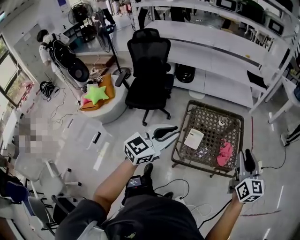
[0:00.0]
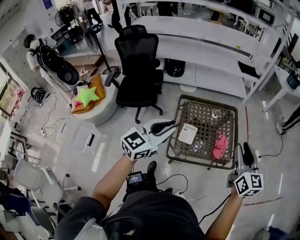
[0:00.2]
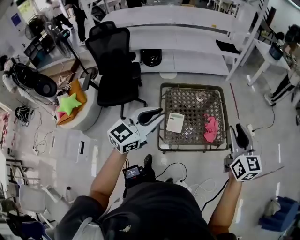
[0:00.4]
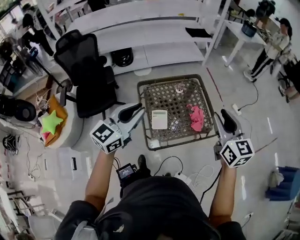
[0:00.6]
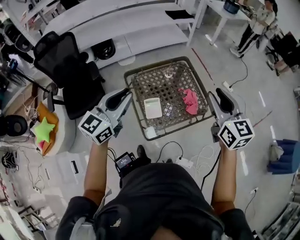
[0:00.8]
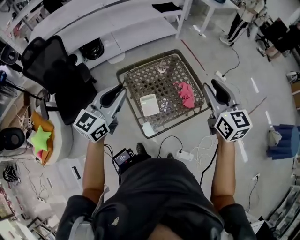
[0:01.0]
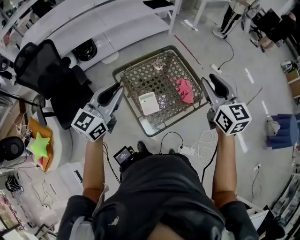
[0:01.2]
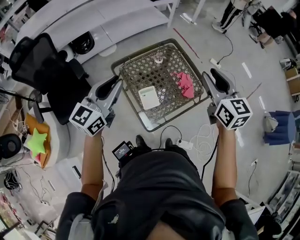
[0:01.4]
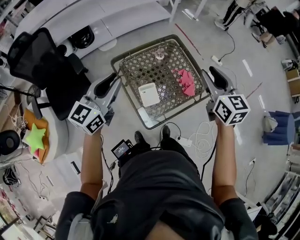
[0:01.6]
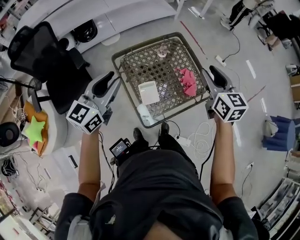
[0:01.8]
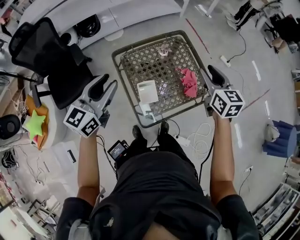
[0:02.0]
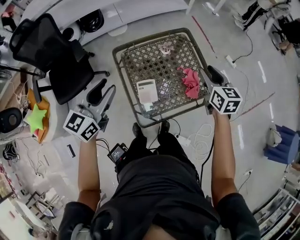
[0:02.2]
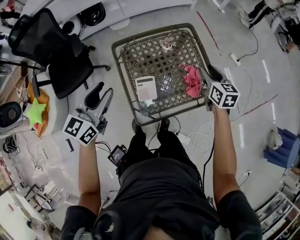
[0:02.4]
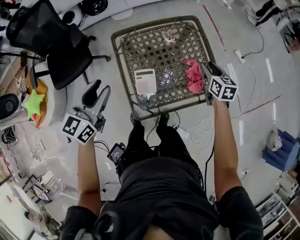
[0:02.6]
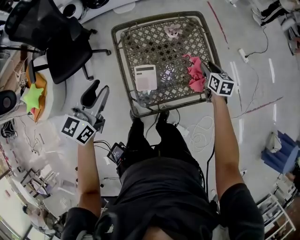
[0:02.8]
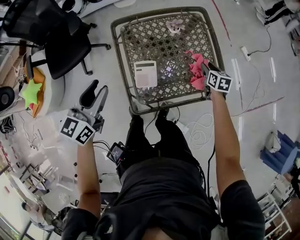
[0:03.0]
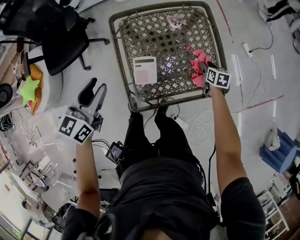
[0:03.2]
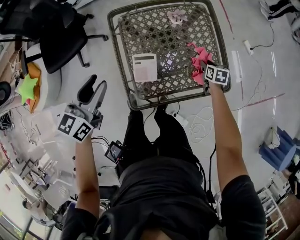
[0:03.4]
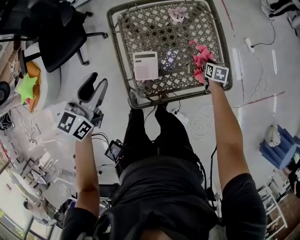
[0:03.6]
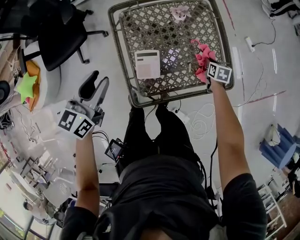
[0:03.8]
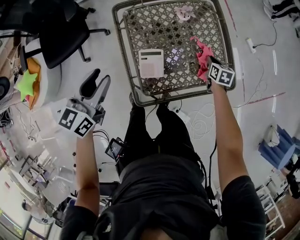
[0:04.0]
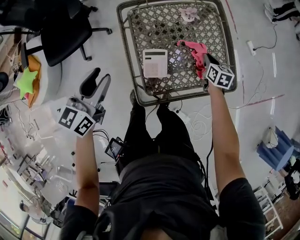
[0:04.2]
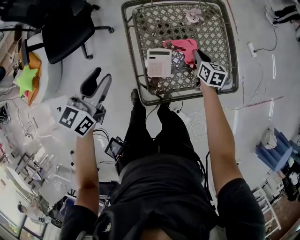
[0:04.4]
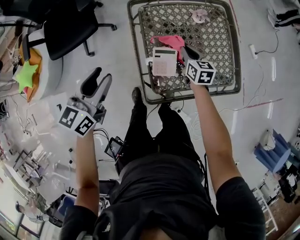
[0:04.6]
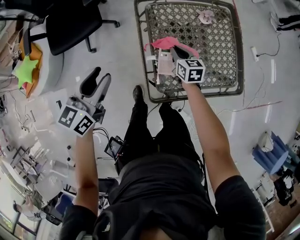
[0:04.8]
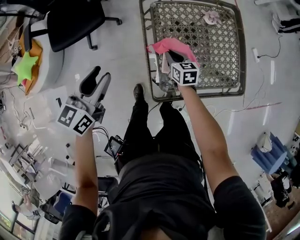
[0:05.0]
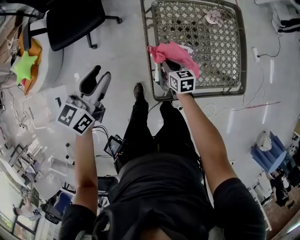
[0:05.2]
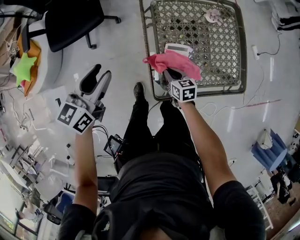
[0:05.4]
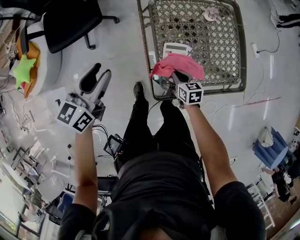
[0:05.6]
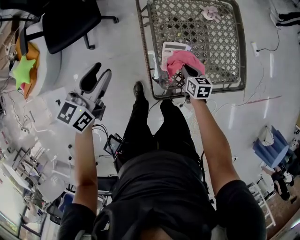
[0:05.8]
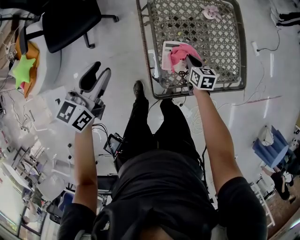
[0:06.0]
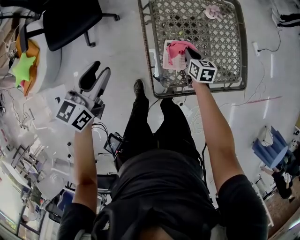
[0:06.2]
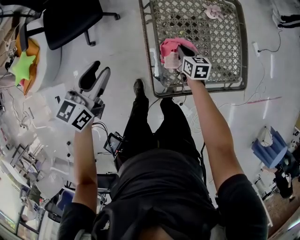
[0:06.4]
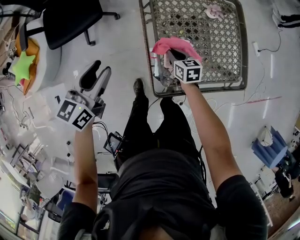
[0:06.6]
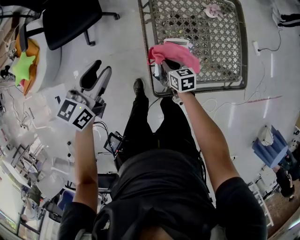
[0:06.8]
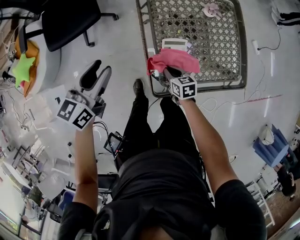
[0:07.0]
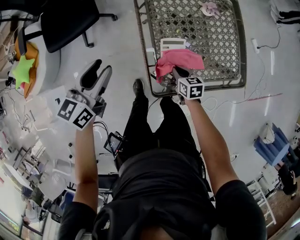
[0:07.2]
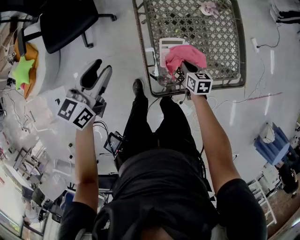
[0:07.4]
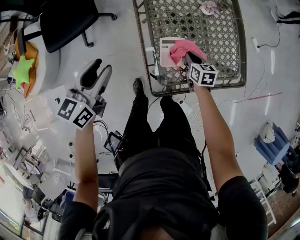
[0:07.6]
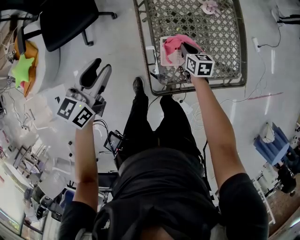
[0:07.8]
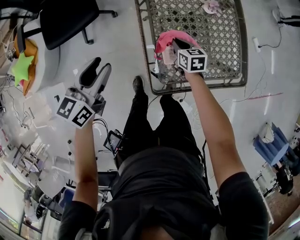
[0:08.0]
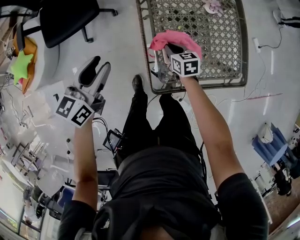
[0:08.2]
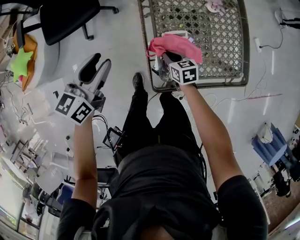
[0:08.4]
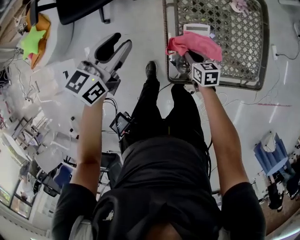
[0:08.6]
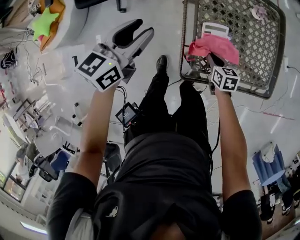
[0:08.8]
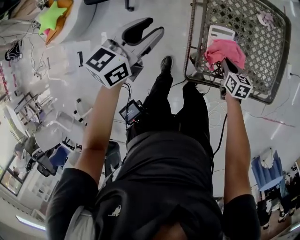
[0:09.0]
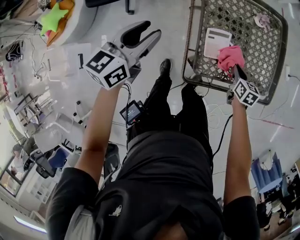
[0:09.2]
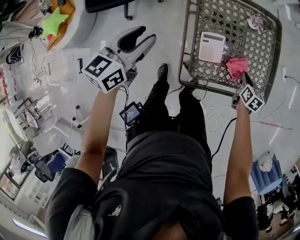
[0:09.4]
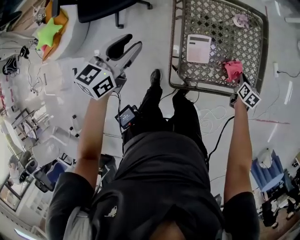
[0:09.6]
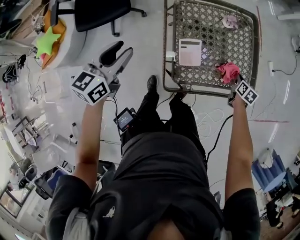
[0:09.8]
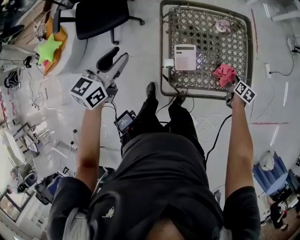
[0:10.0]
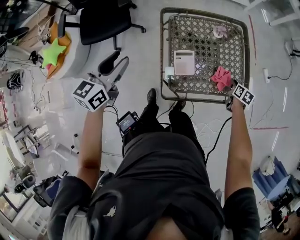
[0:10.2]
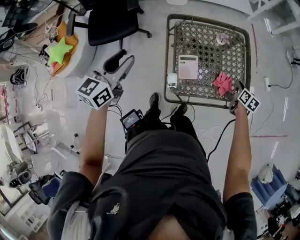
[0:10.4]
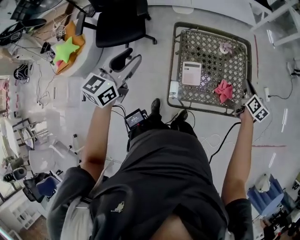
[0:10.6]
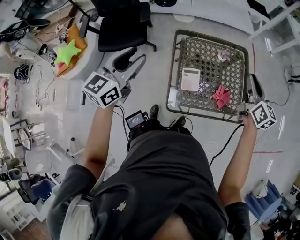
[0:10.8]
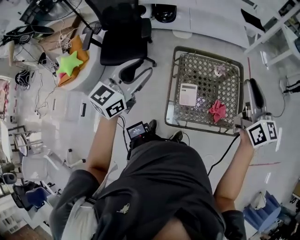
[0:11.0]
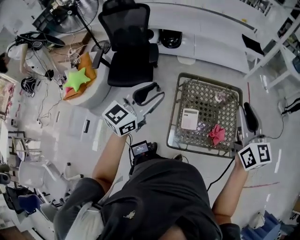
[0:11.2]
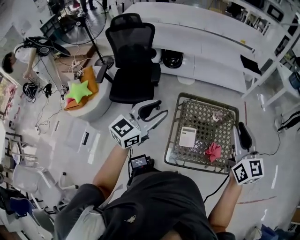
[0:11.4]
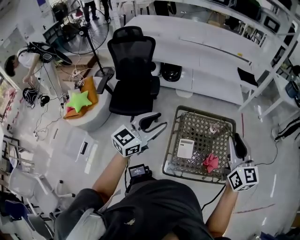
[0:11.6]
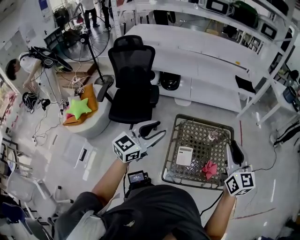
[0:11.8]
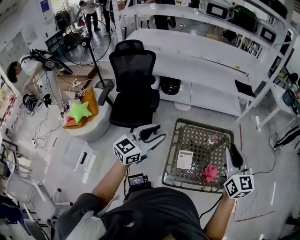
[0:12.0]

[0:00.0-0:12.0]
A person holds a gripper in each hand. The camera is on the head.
0:00.0 to 0:01.6: The right gripper heads forward and to the left, covering about 10 cm, and rotates approximately 30 degrees; the left gripper travels forward and to the left by some 25 cm, and turns by some 20 degrees.
0:01.6 to 0:03.0: The left gripper heads downward, covering about 15 cm, rotates some 30 degrees, and opens, while the right gripper is displaced downward by about 40 cm, and points its fingers roughly 30 degrees further downward.
0:03.0 to 0:04.4: The right gripper travels to the left by roughly 15 cm, and closes up; the left gripper goes approximately 5 cm to the left.
0:04.4 to 0:06.0: The left gripper travels to the left by roughly 10 cm. Meanwhile the right gripper travels to the left, downward and backward by about 15 cm.
0:06.0 to 0:07.6: The right gripper travels to the left and back again, roughly 10 cm each way.
0:07.6 to 0:09.0: The right gripper heads backward, covering approximately 5 cm, and goes to the left and returns, approximately 10 cm each way.
0:09.0 to 0:10.4: The left gripper goes about 15 cm upward. The right gripper goes about 25 cm to the right and upward, and swivels roughly 20 degrees.
0:10.4 to 0:12.0: The right gripper moves upward and to the left, approximately 50 cm, and angles its fingers upward, by approximately 40 degrees. The left gripper is displaced upward by some 15 cm, and swivels approximately 20 degrees.

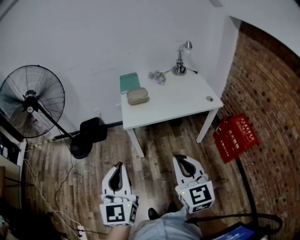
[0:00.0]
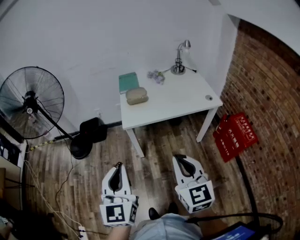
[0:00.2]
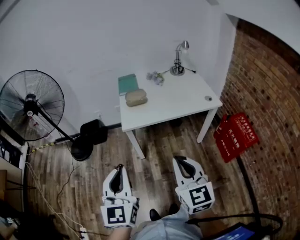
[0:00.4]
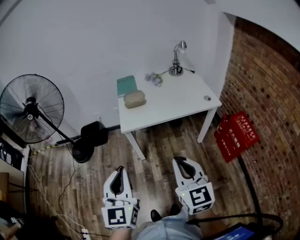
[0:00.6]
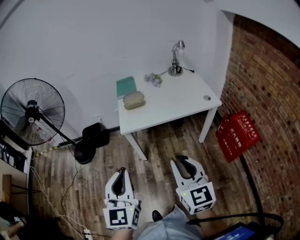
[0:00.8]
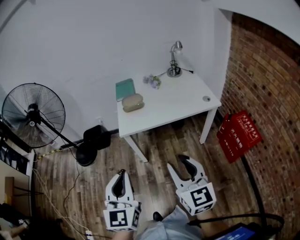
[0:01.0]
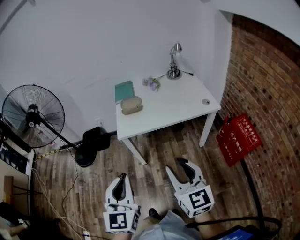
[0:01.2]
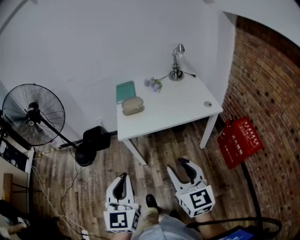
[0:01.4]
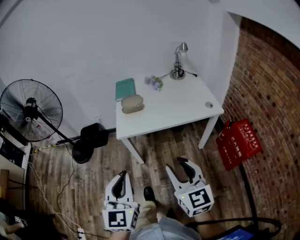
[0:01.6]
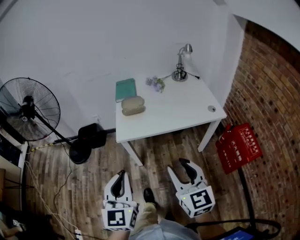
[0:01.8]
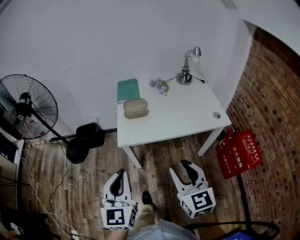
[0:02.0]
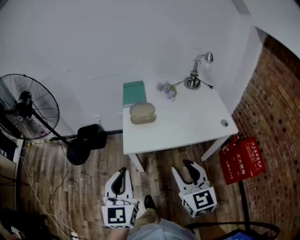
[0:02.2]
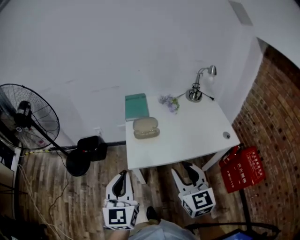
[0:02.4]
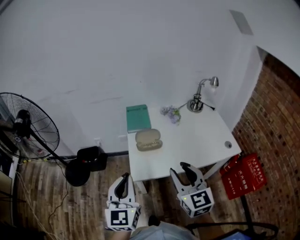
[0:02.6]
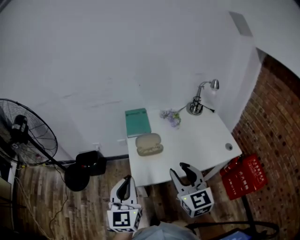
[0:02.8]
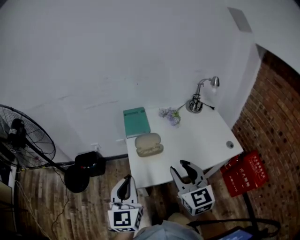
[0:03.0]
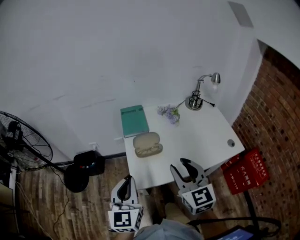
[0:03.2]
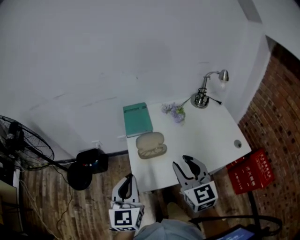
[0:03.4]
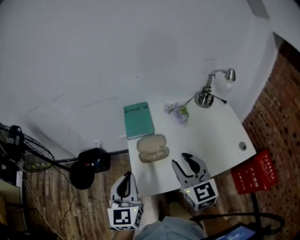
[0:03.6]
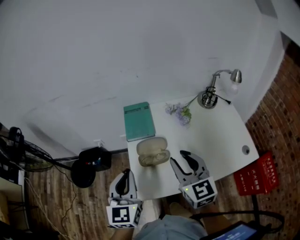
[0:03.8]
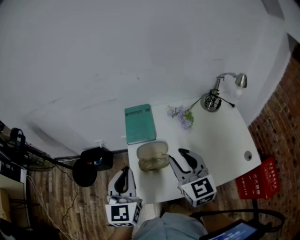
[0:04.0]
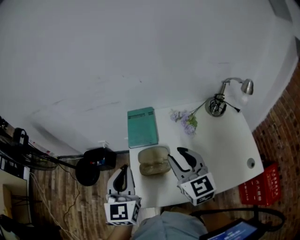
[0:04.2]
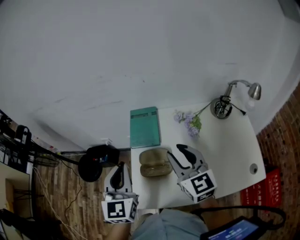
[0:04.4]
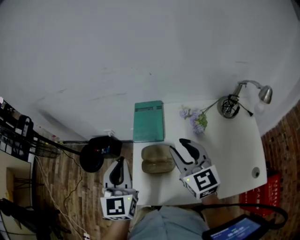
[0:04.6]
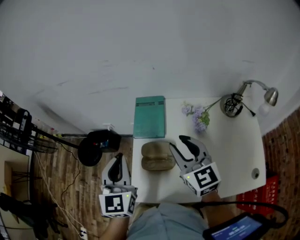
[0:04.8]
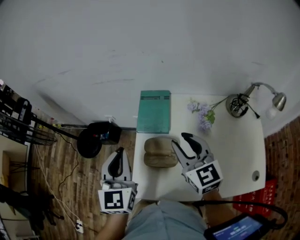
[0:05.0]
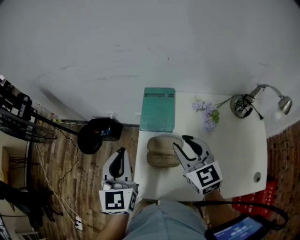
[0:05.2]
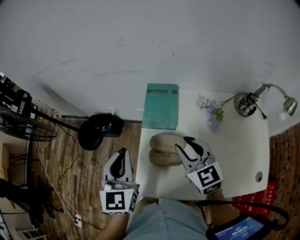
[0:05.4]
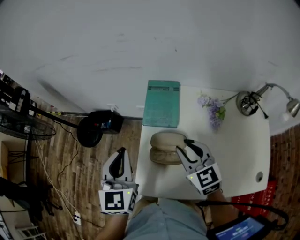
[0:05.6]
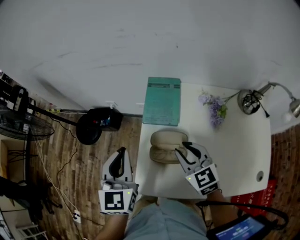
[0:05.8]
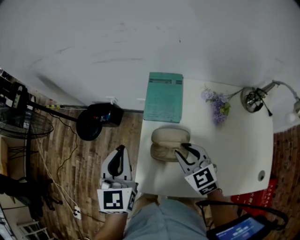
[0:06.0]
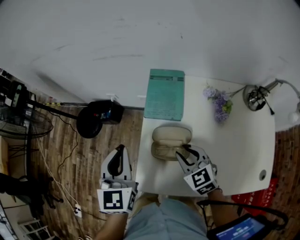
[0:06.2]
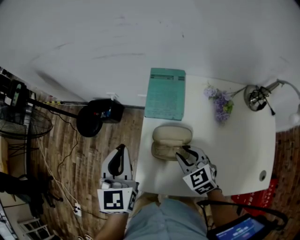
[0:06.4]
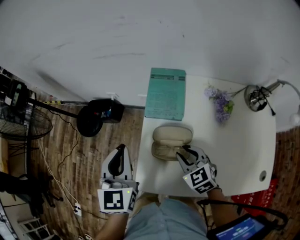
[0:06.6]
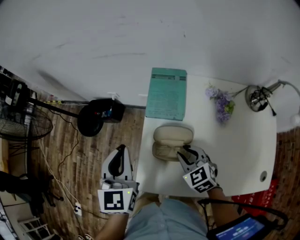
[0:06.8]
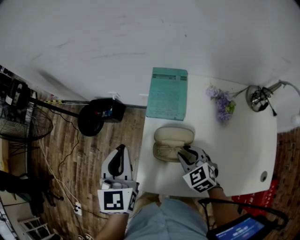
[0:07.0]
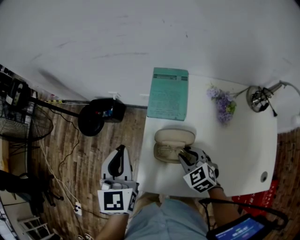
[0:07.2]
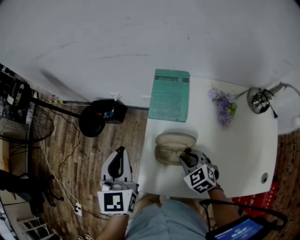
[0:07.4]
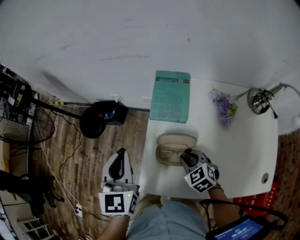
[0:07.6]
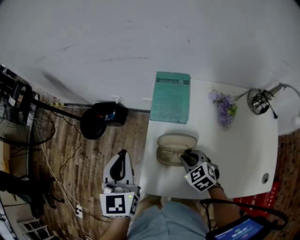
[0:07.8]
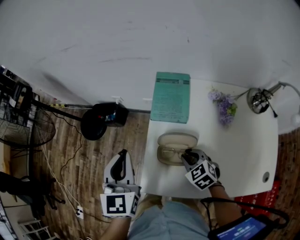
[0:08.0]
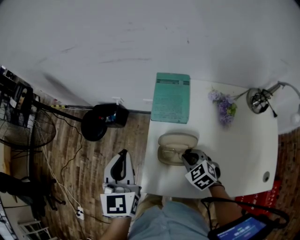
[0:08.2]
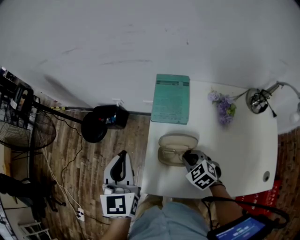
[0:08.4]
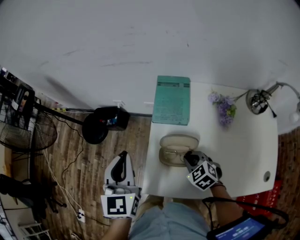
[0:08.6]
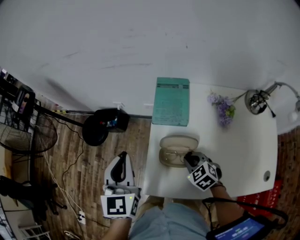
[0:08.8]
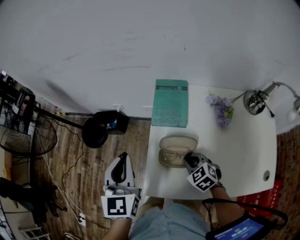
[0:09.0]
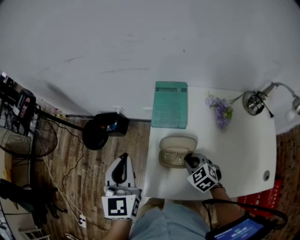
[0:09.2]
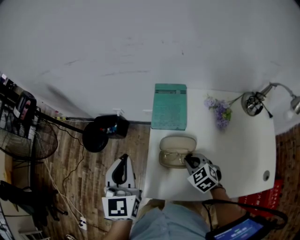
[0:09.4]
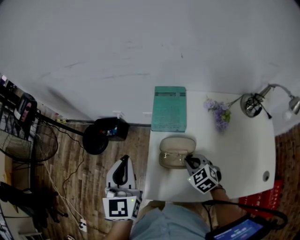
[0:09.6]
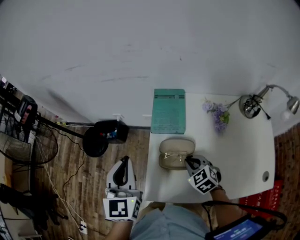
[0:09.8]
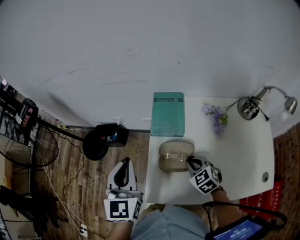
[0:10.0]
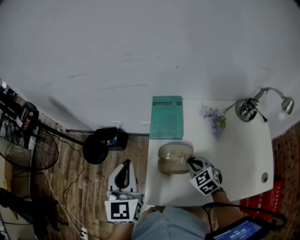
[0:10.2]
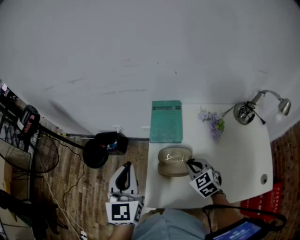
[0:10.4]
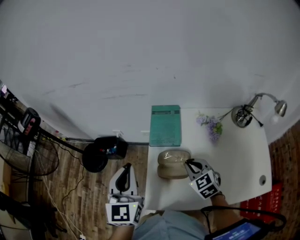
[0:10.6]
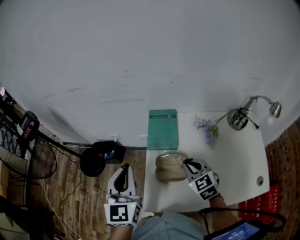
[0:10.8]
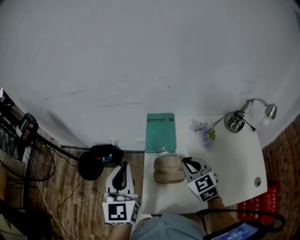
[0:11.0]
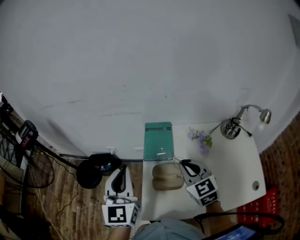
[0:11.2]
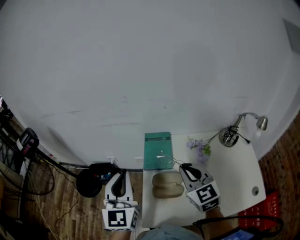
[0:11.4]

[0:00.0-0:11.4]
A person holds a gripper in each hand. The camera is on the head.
0:00.0 to 0:01.4: Both grippers move to the right, about 10 cm. The right gripper opens.
0:01.4 to 0:02.8: Both grippers move forward, some 30 cm.
0:02.8 to 0:04.2: The grippers both shift forward by some 20 cm.
0:04.2 to 0:05.6: The right gripper moves downward and forward, about 10 cm, and changes its angle by approximately 20 degrees. Meanwhile the left gripper moves to the left, about 5 cm.
0:05.6 to 0:07.2: The right gripper moves downward, about 15 cm, and rotates approximately 20 degrees.
0:07.2 to 0:10.0: The grippers stay close to where they were, moving slightly.
0:10.0 to 0:11.4: The left gripper shifts about 10 cm upward, while the right gripper shifts some 20 cm upward, and swivels roughly 30 degrees.
